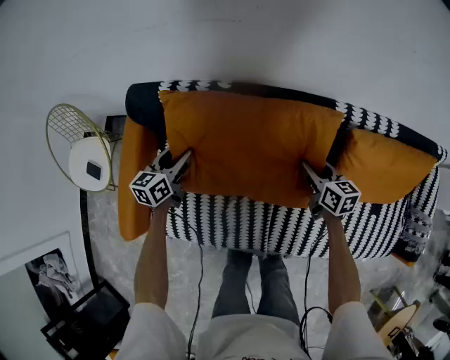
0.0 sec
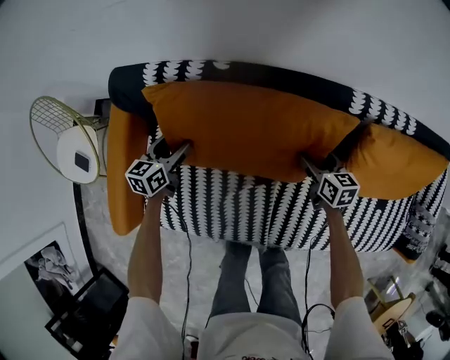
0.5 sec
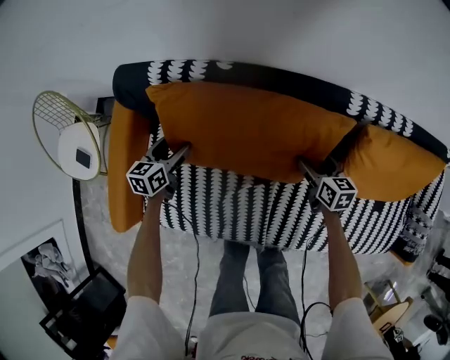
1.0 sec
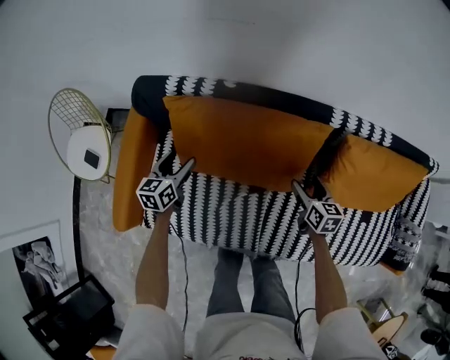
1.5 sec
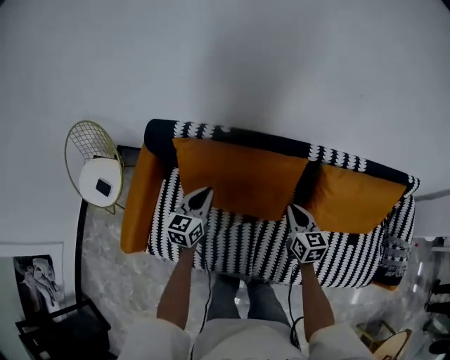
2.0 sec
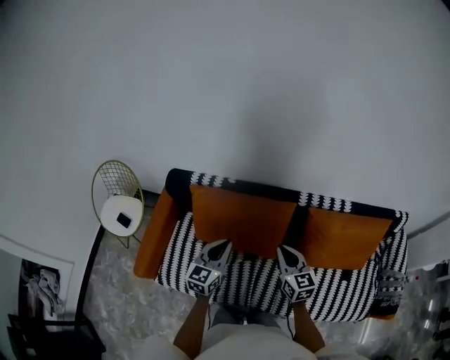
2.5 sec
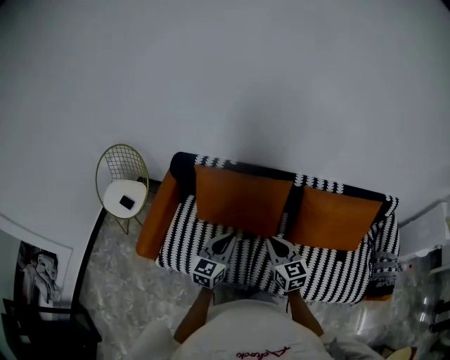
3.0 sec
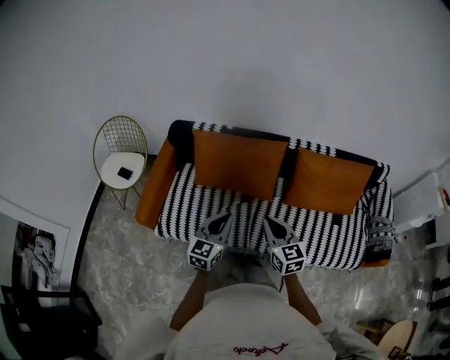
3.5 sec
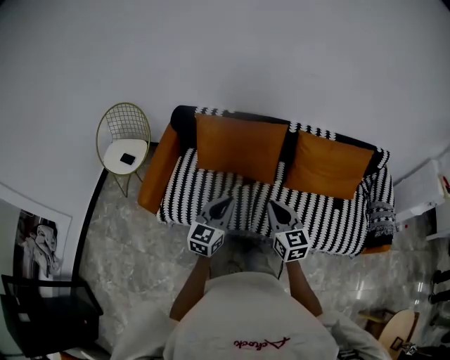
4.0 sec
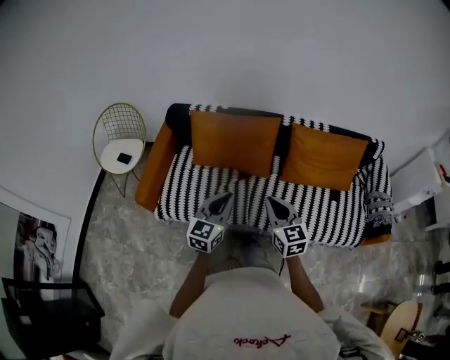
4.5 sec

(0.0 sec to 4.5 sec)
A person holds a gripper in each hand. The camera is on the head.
0.0 sec - 2.0 sec: The right gripper goes roughly 15 cm upward and backward, and closes up; the left gripper shifts approximately 15 cm upward, to the right and backward, and closes.
2.0 sec - 4.5 sec: Both grippers travel together backward and upward, some 40 cm.

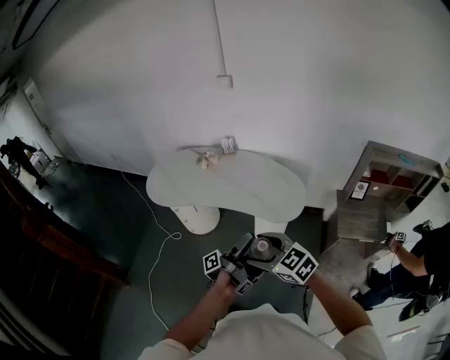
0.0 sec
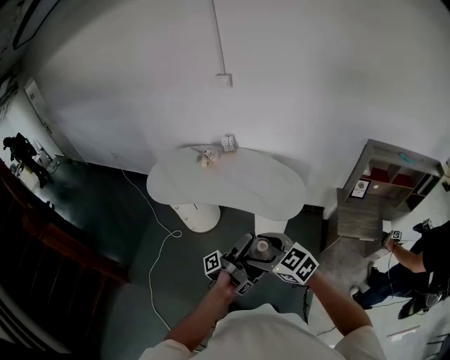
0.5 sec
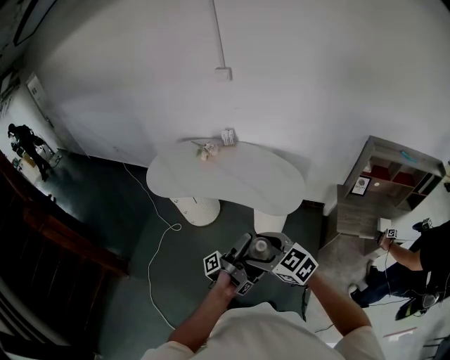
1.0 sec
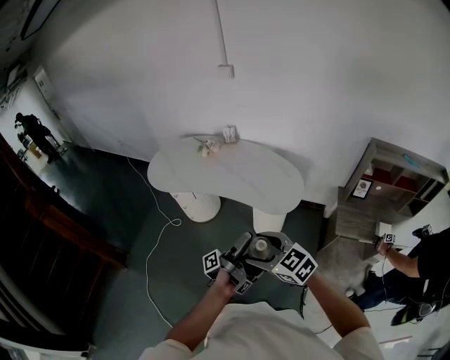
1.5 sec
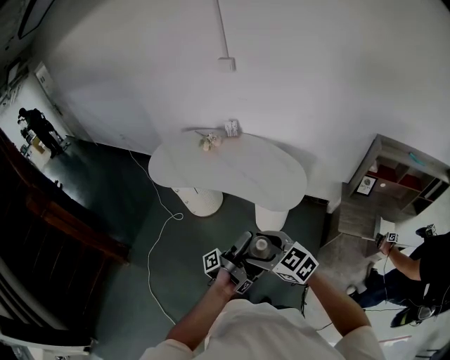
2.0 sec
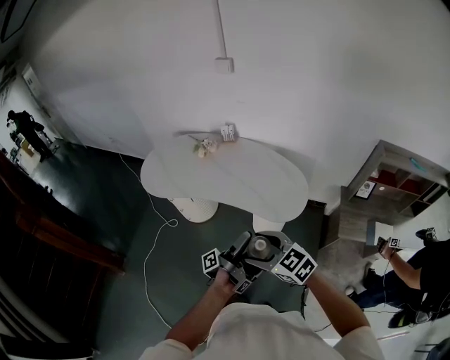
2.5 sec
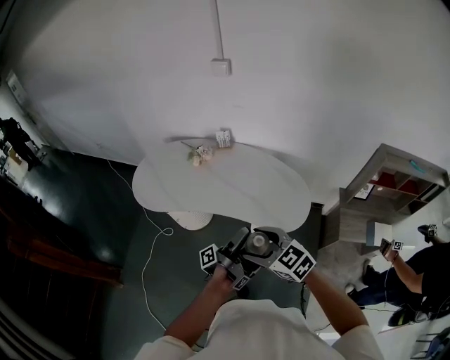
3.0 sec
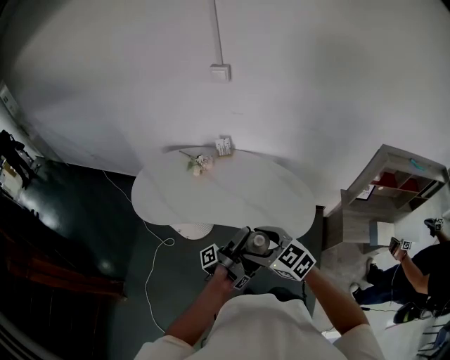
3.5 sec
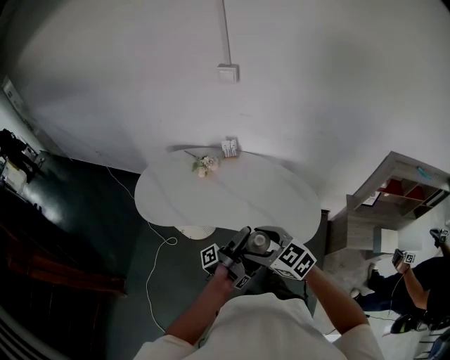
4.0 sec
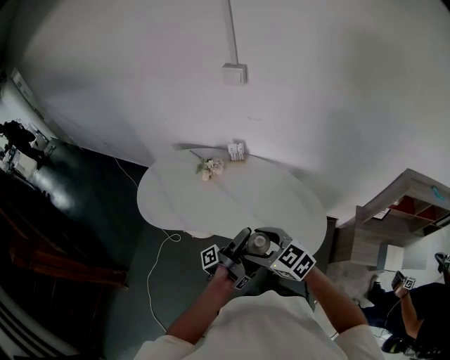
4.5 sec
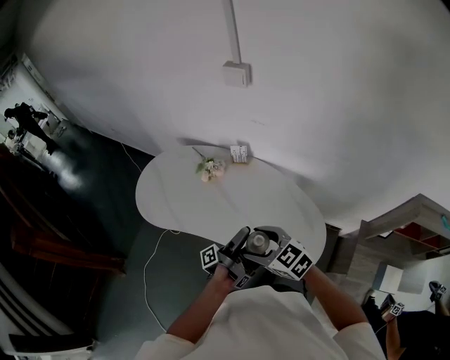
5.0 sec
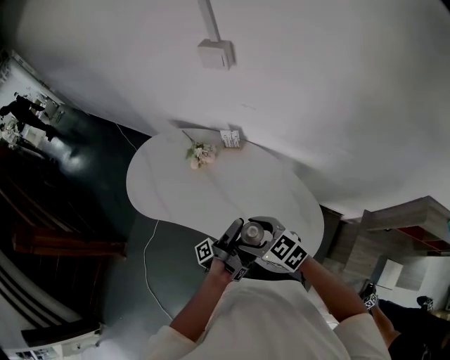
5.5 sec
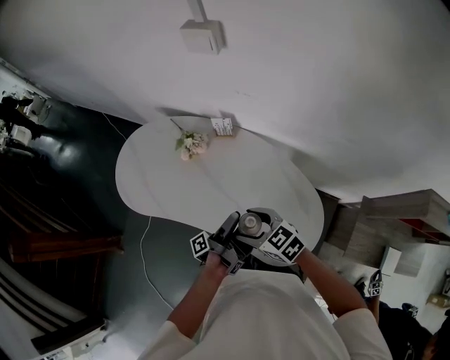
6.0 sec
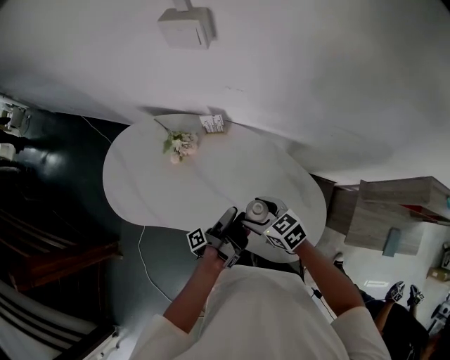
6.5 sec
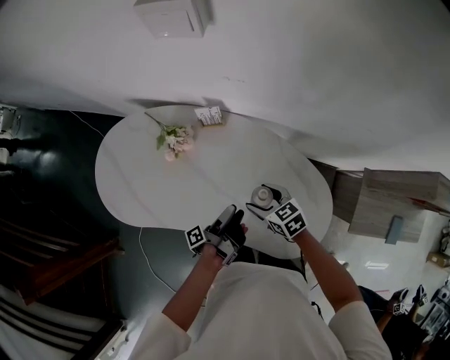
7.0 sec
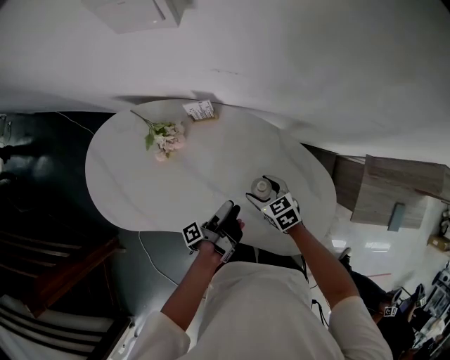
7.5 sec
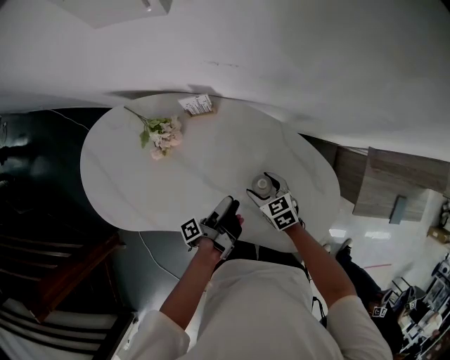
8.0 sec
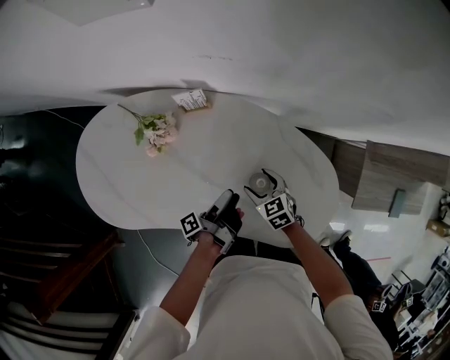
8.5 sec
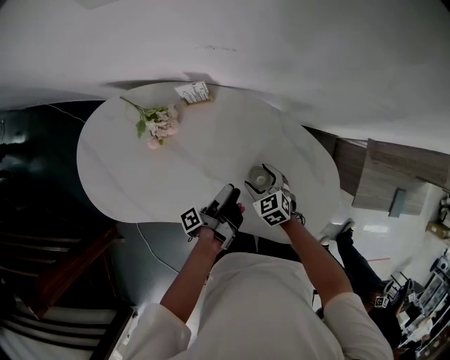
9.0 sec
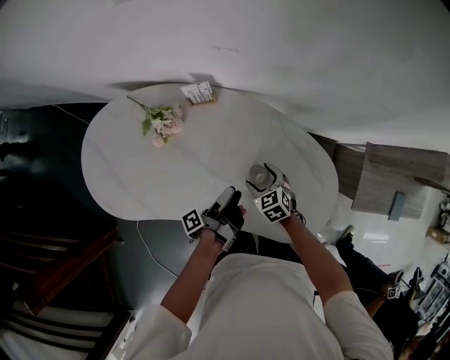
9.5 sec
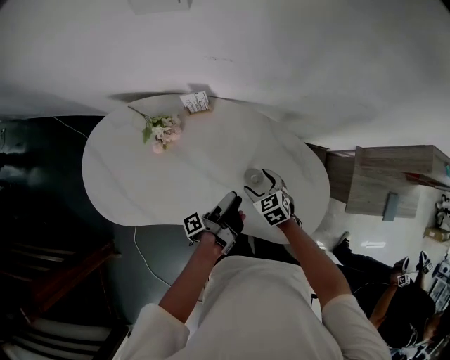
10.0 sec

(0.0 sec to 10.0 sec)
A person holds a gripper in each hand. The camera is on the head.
0.0 sec - 2.0 sec: The right gripper shifts by some 5 cm.
2.0 sec - 4.0 sec: The right gripper changes place by roughly 30 cm.
4.0 sec - 6.0 sec: The right gripper shifts by approximately 30 cm.
6.0 sec - 8.0 sec: The right gripper is displaced downward by about 25 cm, and turns by some 40 degrees.

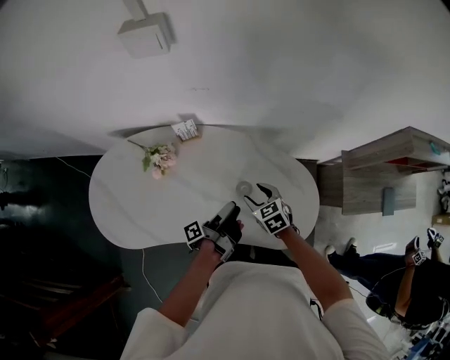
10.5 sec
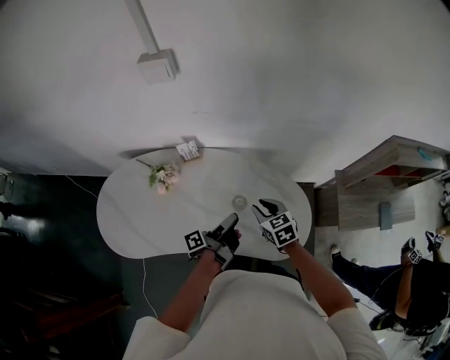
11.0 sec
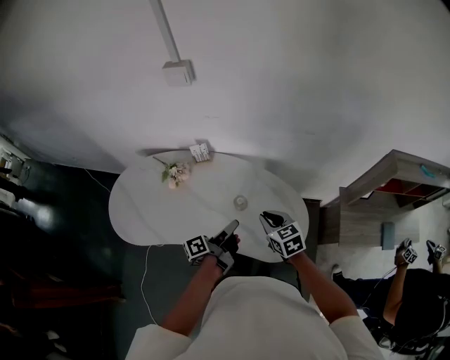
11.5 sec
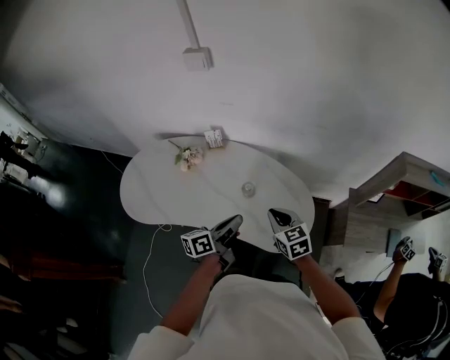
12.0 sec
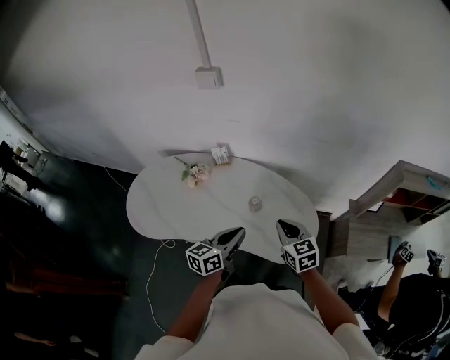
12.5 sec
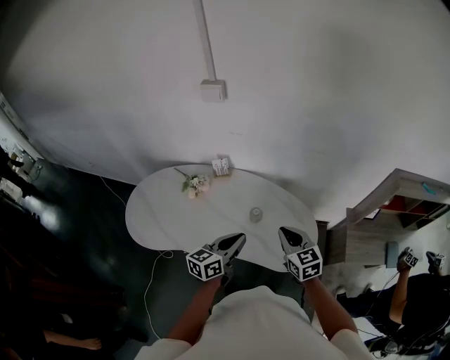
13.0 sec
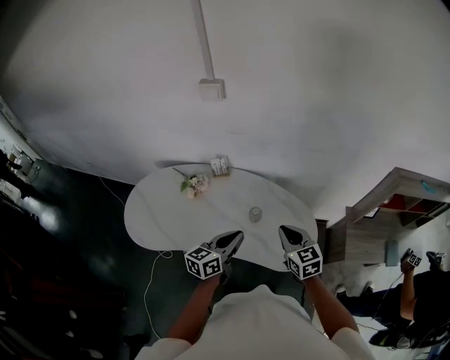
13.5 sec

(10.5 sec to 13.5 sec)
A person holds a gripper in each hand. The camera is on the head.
10.5 sec - 12.0 sec: The right gripper shifts about 15 cm upward, and closes.
12.0 sec - 13.5 sec: The right gripper goes approximately 5 cm upward.

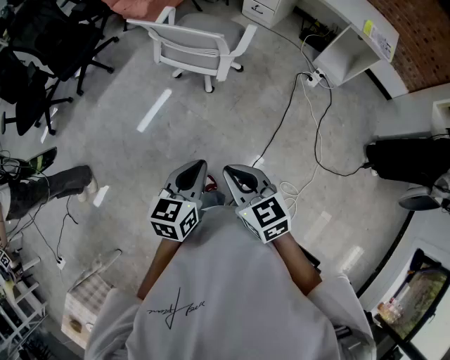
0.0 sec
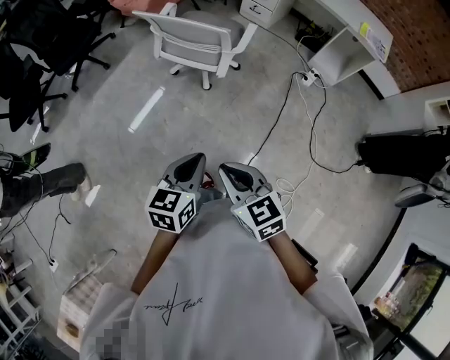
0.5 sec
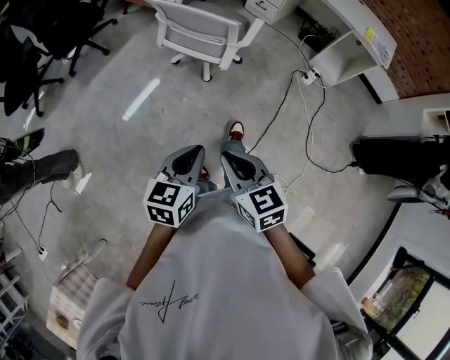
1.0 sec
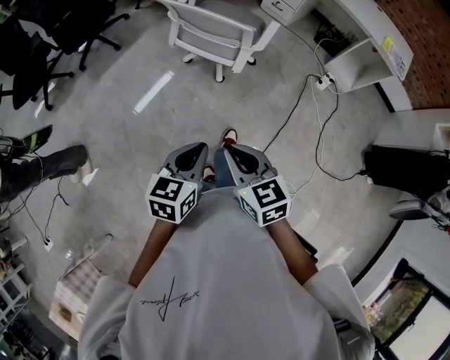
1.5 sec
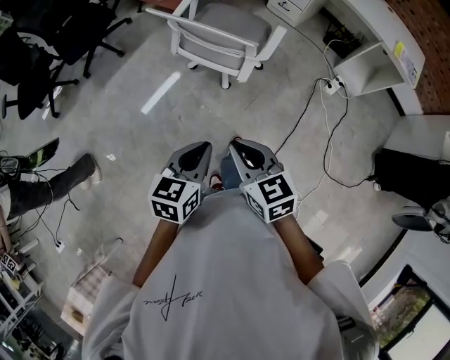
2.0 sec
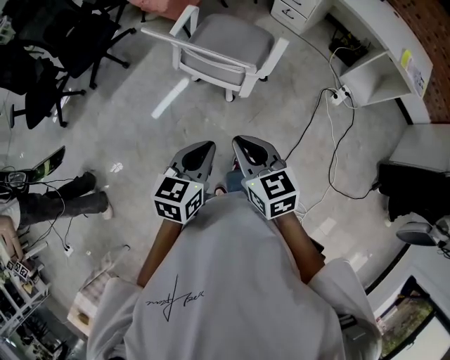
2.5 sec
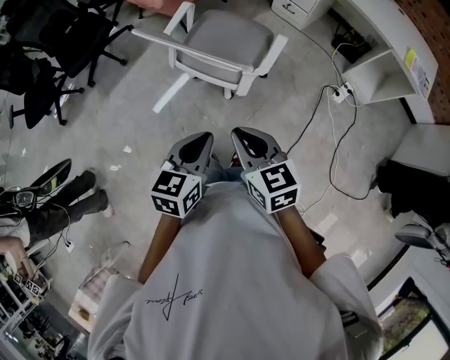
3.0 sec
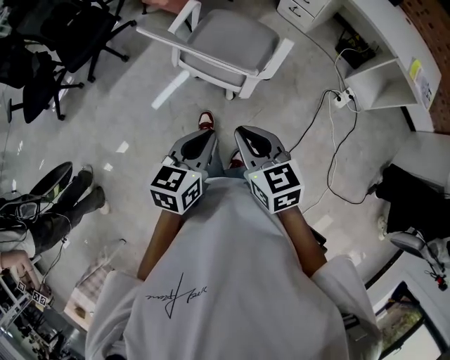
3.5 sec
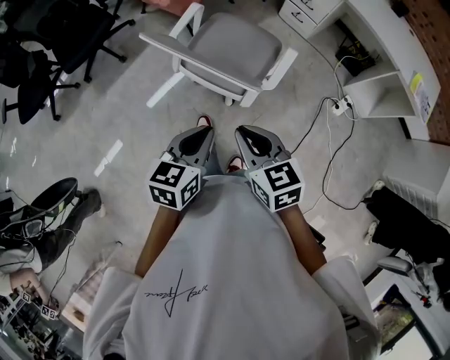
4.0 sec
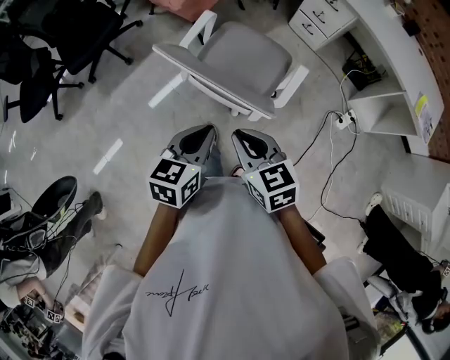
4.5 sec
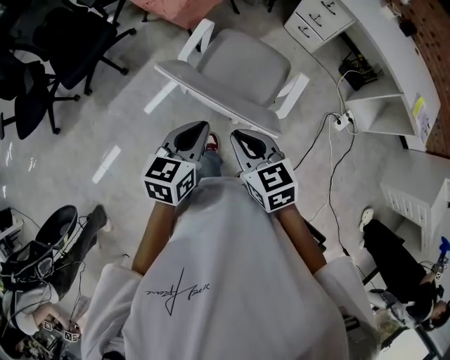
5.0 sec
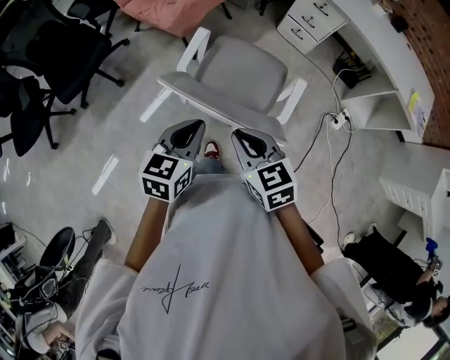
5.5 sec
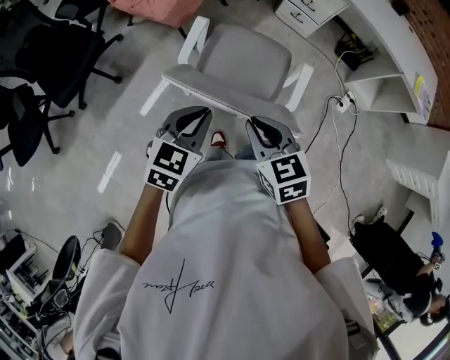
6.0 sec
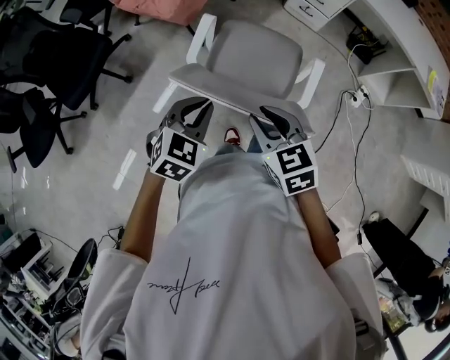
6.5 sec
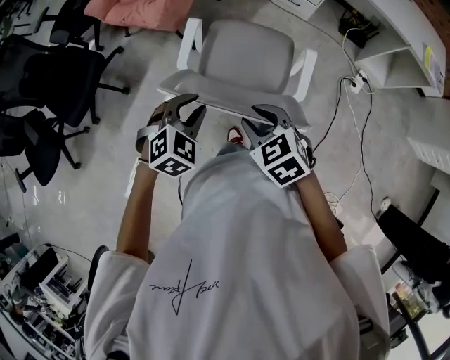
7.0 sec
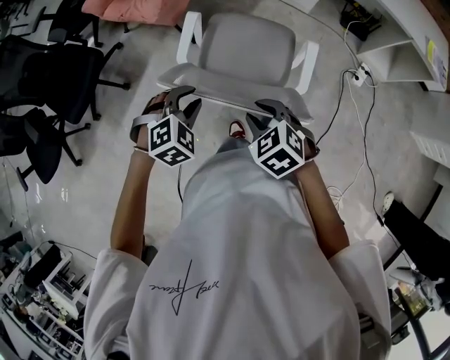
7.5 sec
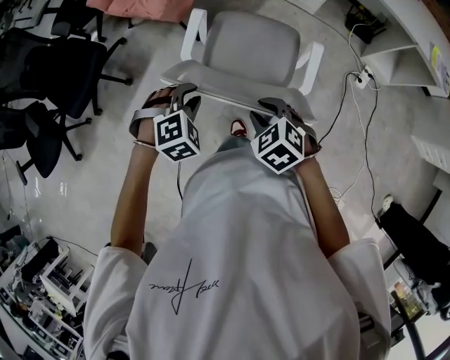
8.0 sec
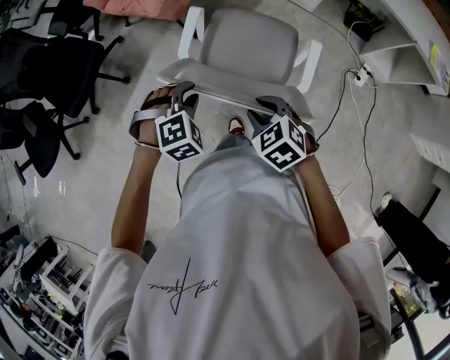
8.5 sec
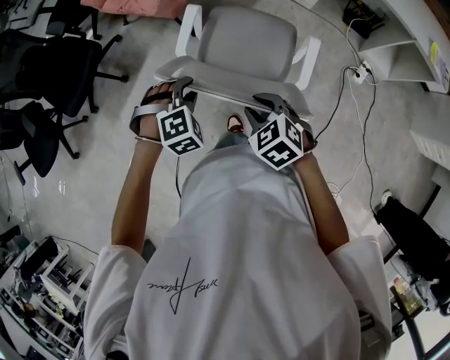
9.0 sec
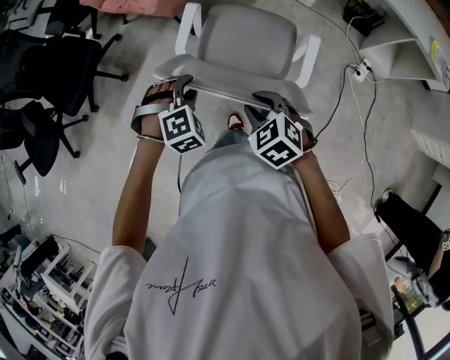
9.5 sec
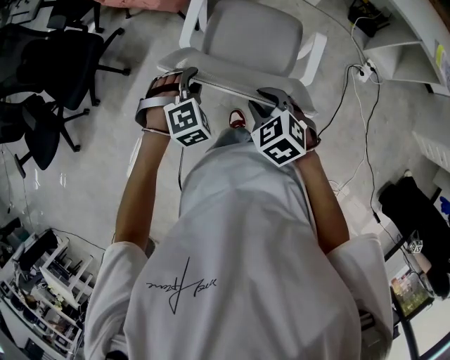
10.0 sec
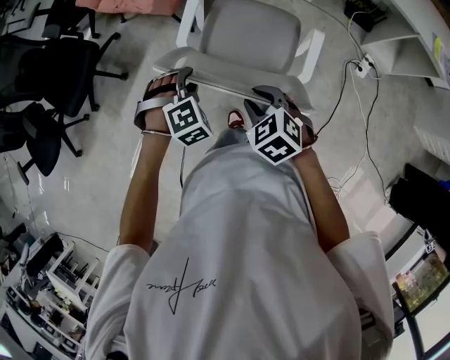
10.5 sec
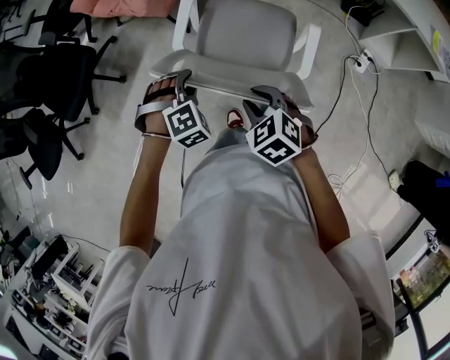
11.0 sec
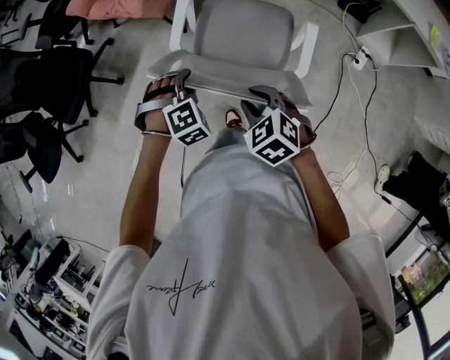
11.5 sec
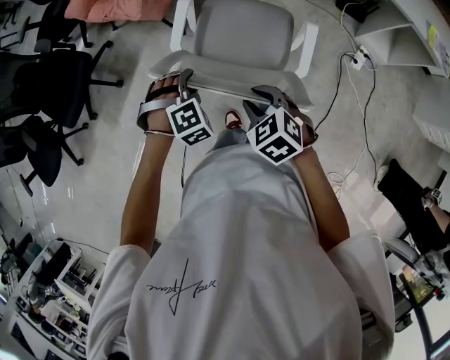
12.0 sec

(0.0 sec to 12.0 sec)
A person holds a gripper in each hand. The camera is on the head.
0.0 sec - 2.0 sec: The two grippers go about 15 cm forward.
2.0 sec - 4.0 sec: Both grippers move forward, about 20 cm.
4.0 sec - 6.0 sec: The two grippers go approximately 25 cm forward and to the left. The left gripper rotates roughly 30 degrees.
6.0 sec - 8.0 sec: The grippers both shift downward by some 10 cm. The right gripper changes its angle by some 30 degrees, and opens up, while the left gripper rotates around the line of its fingers by some 50 degrees, clockwise from behind, and opens.
8.0 sec - 10.0 sec: There are only small adjustments of the grippers.
10.0 sec - 12.0 sec: The left gripper shifts by about 5 cm.
